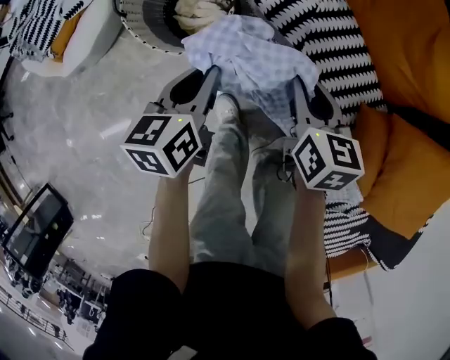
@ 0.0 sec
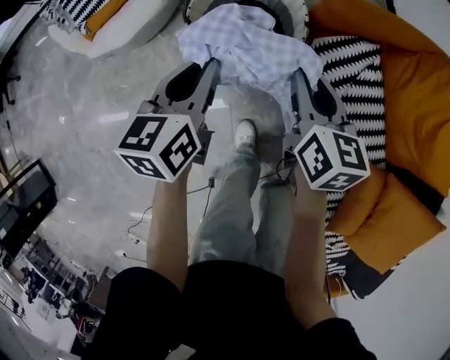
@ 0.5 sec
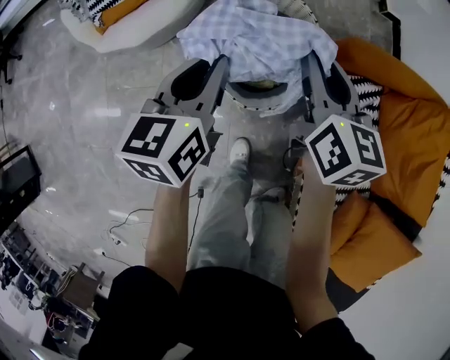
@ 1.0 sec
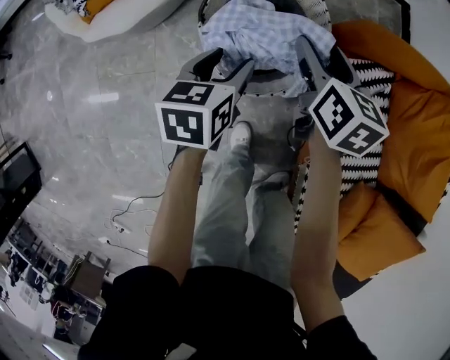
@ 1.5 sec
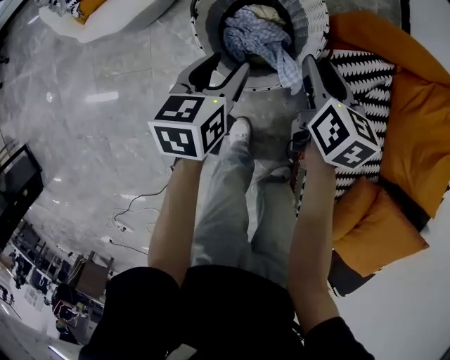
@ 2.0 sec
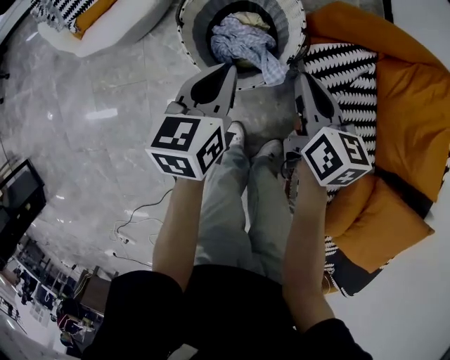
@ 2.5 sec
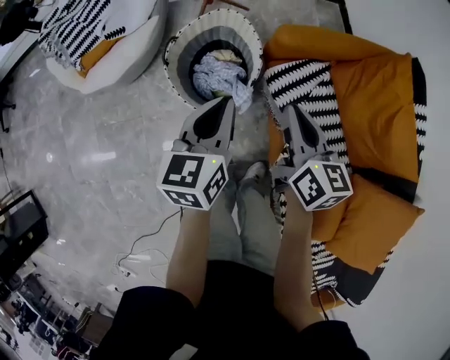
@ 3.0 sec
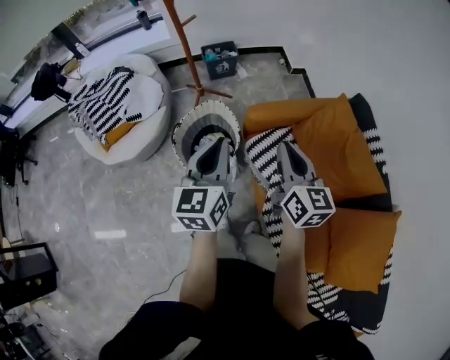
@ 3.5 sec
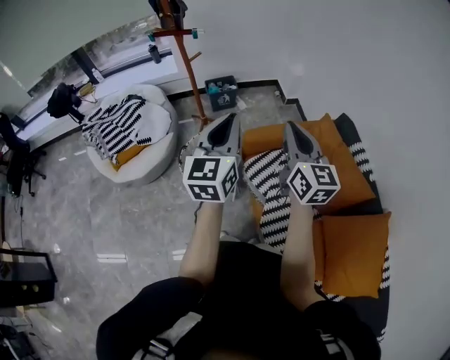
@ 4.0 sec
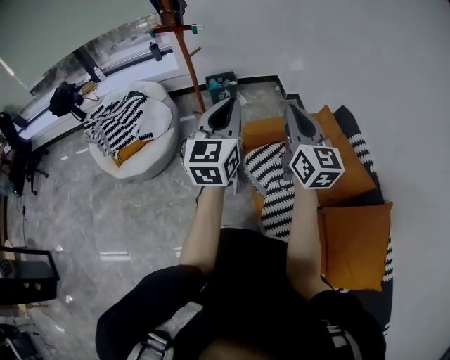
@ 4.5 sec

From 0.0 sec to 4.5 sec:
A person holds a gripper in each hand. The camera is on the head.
From 0.0 sec to 2.0 sec: The left gripper goes some 25 cm to the left and forward, and opens. The right gripper goes some 30 cm forward and to the left, and opens and closes again.
From 2.0 sec to 4.5 sec: The two grippers go about 60 cm upward and to the right. The right gripper tilts its fingers approximately 40 degrees upward, and closes. The left gripper tilts its fingers some 40 degrees upward, and closes up.

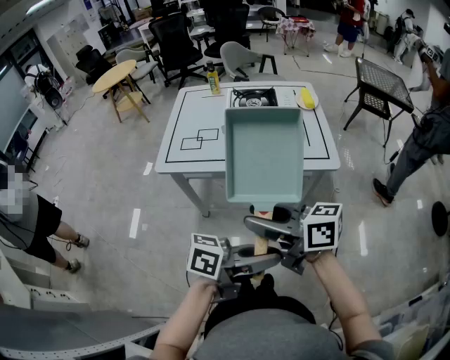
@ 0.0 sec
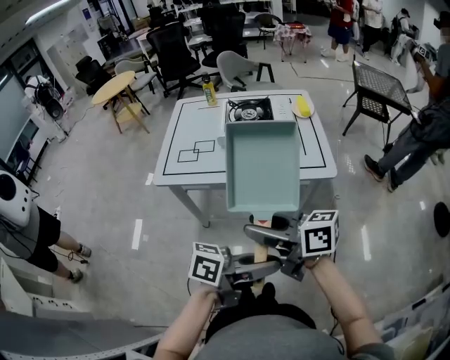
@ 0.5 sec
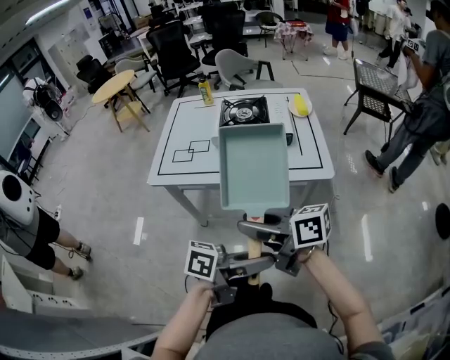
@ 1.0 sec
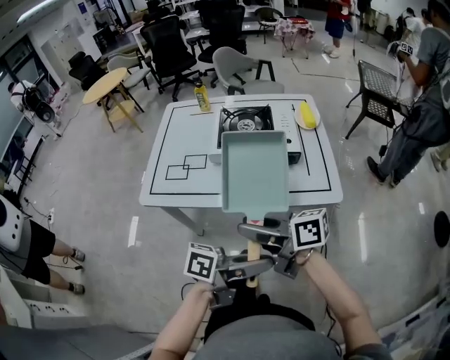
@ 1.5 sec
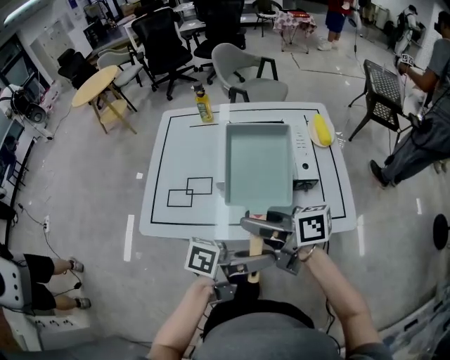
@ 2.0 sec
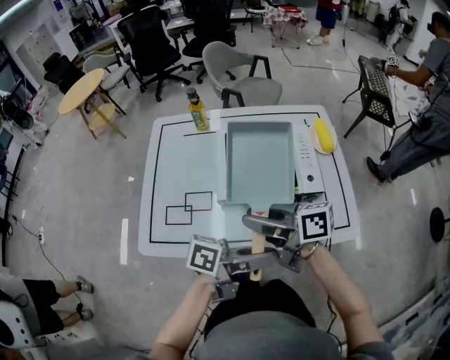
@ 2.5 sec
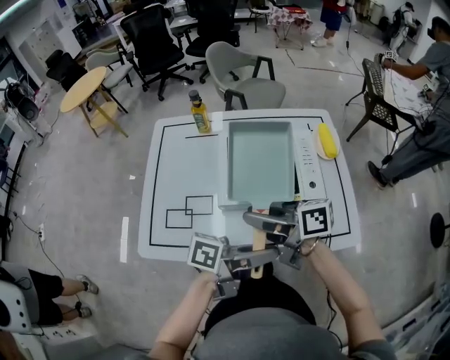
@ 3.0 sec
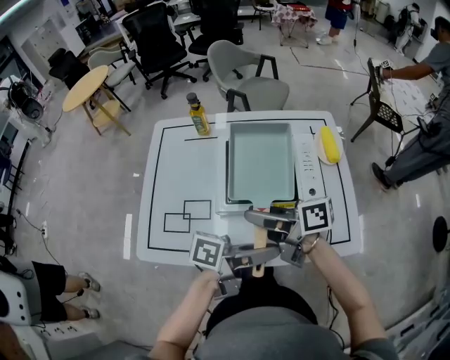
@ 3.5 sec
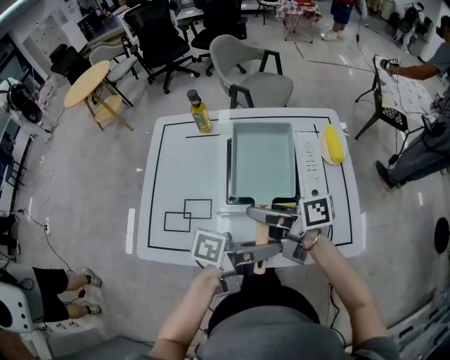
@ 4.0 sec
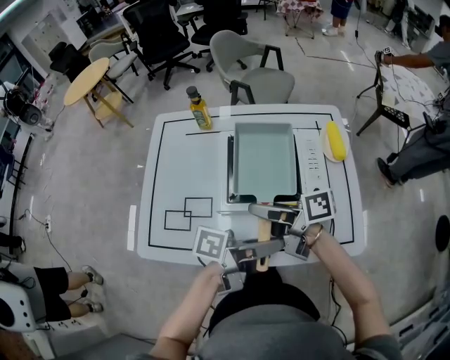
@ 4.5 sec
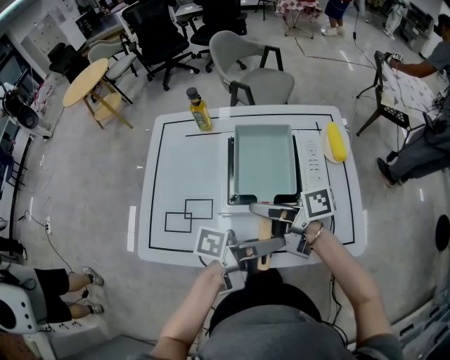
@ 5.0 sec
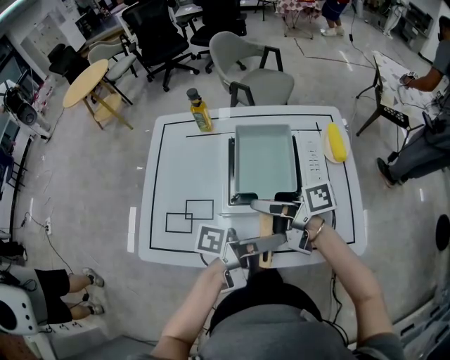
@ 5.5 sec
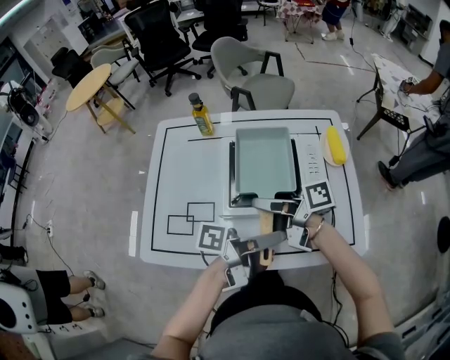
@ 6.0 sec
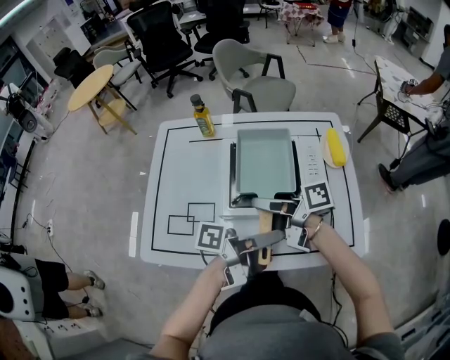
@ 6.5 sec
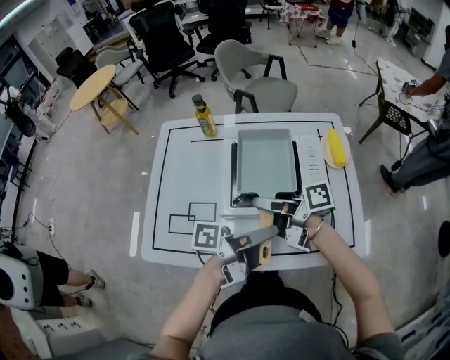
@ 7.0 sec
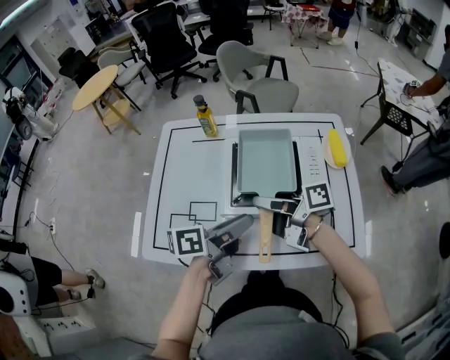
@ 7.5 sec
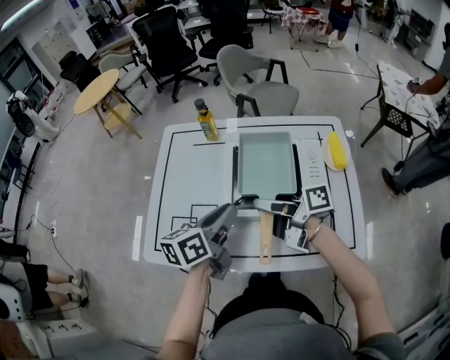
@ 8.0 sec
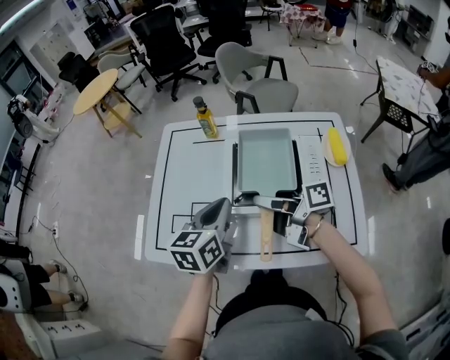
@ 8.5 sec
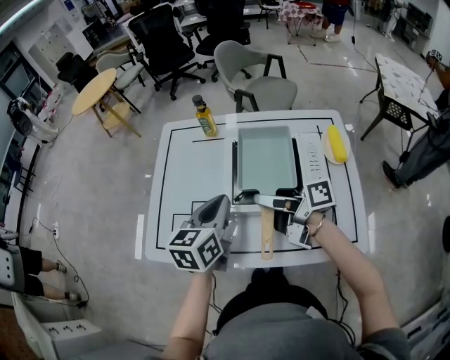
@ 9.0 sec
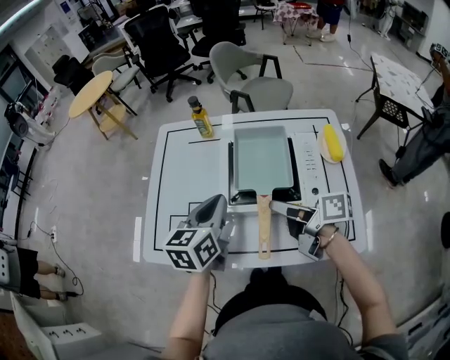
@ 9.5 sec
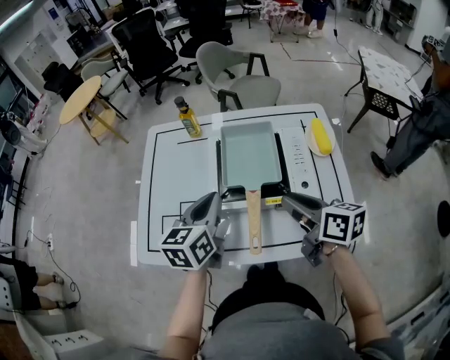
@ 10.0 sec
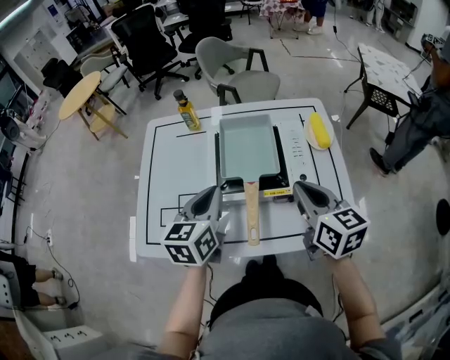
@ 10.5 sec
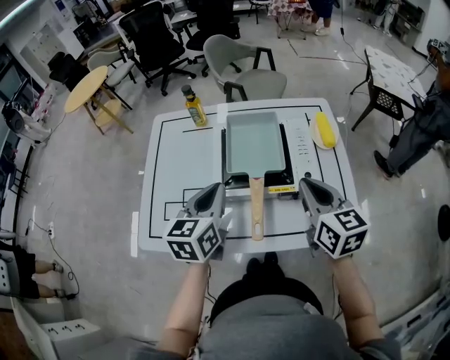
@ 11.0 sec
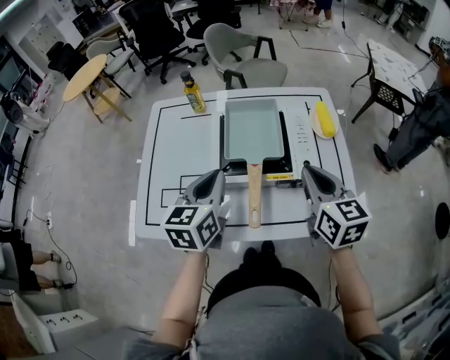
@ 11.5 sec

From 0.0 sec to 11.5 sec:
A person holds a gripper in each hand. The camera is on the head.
From 0.0 sec to 2.0 sec: The right gripper changes place by about 25 cm; the left gripper ends up some 25 cm from where it was.
From 2.0 sec to 4.0 sec: The left gripper shifts by approximately 15 cm. The right gripper shifts by about 15 cm.
From 4.0 sec to 6.0 sec: There are only small adjustments of the grippers.
From 6.0 sec to 7.5 sec: The left gripper moves roughly 10 cm, and swivels some 40 degrees.
From 7.5 sec to 9.5 sec: The left gripper heads forward, covering approximately 5 cm, changes its angle by roughly 50 degrees, and closes up, while the right gripper changes place by approximately 5 cm.
From 9.5 sec to 11.5 sec: The right gripper travels to the right and upward by some 10 cm, changes its angle by approximately 60 degrees, and closes.

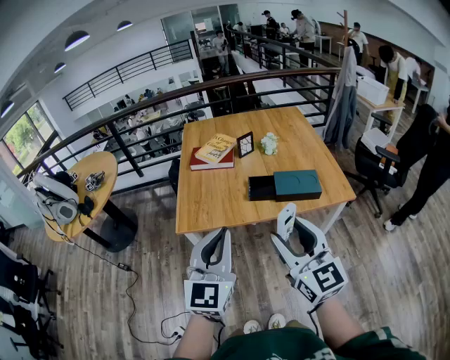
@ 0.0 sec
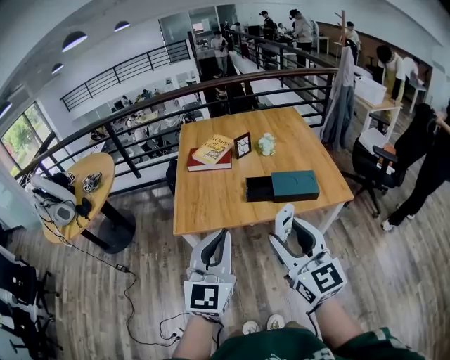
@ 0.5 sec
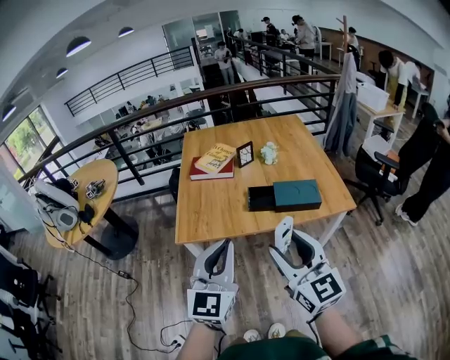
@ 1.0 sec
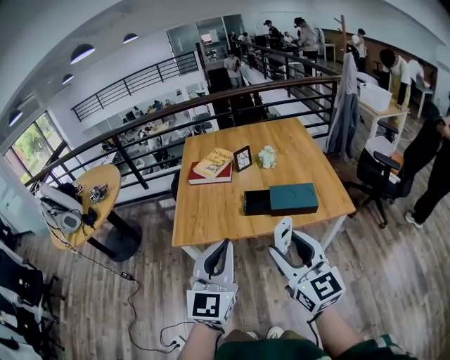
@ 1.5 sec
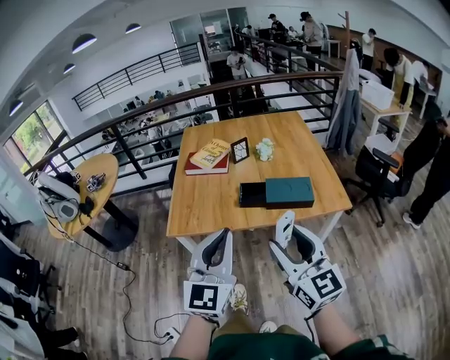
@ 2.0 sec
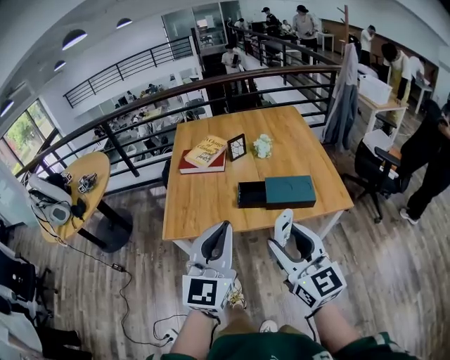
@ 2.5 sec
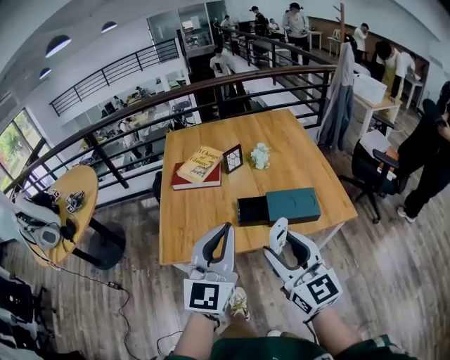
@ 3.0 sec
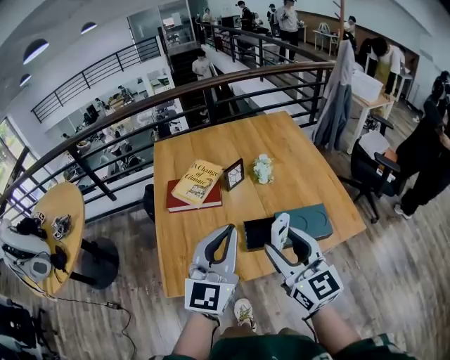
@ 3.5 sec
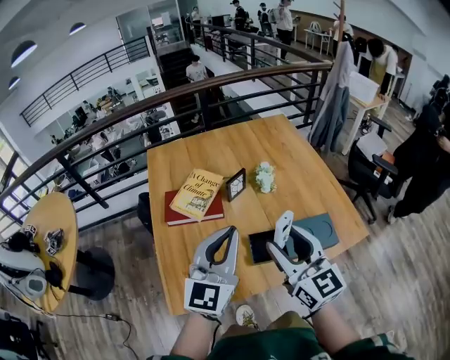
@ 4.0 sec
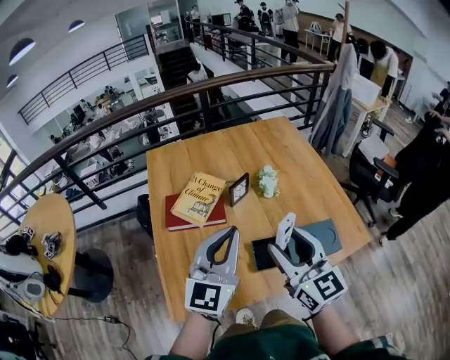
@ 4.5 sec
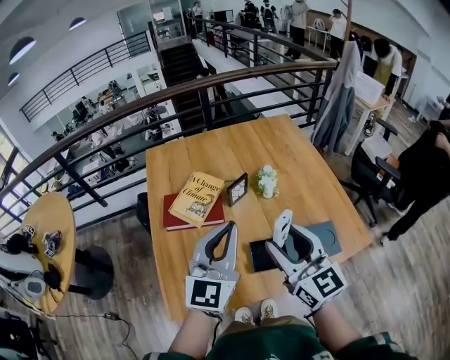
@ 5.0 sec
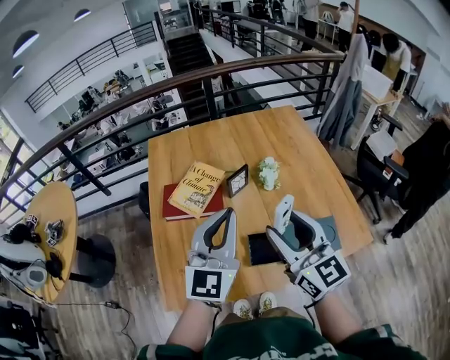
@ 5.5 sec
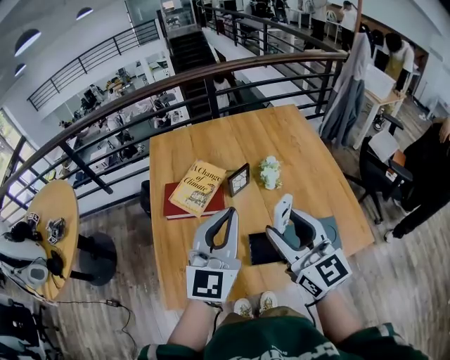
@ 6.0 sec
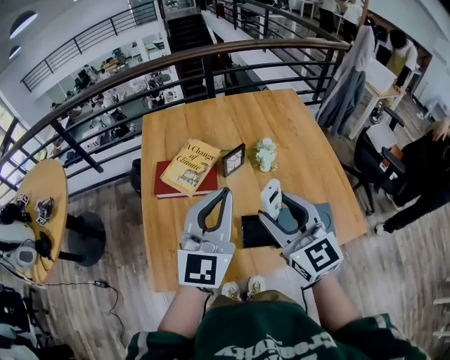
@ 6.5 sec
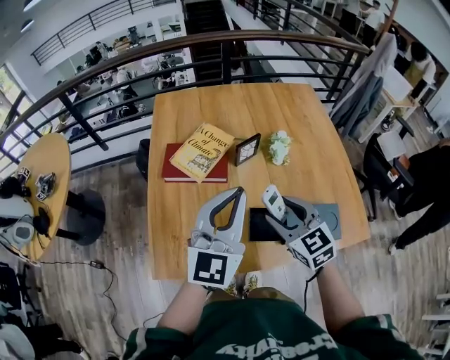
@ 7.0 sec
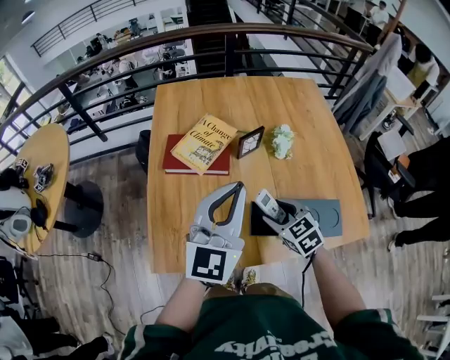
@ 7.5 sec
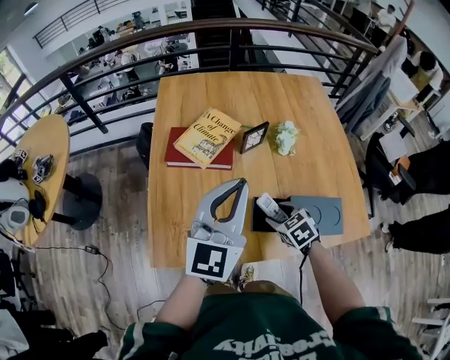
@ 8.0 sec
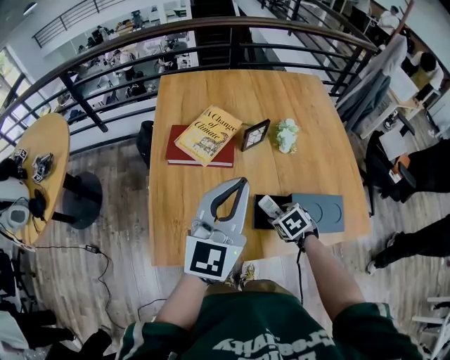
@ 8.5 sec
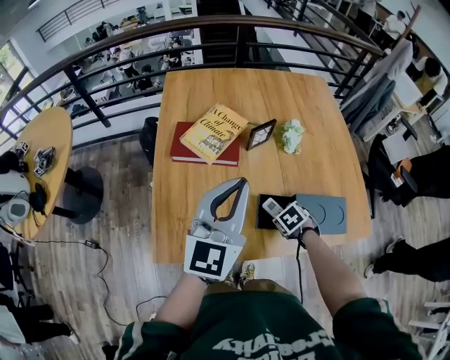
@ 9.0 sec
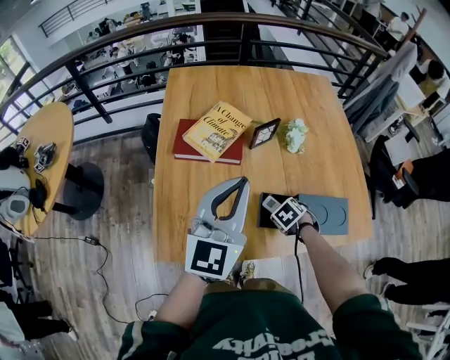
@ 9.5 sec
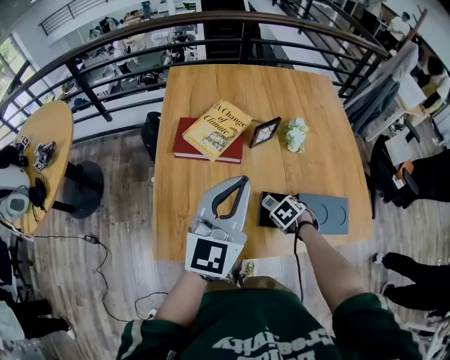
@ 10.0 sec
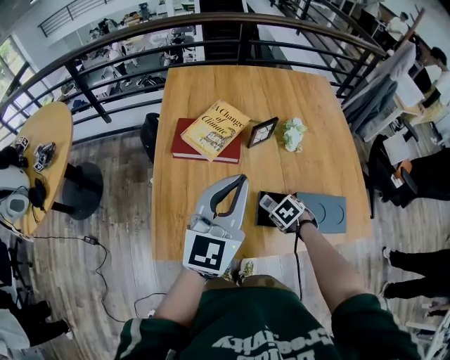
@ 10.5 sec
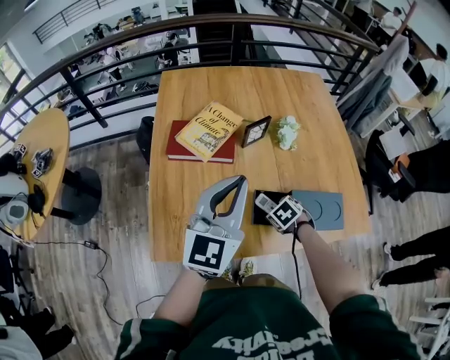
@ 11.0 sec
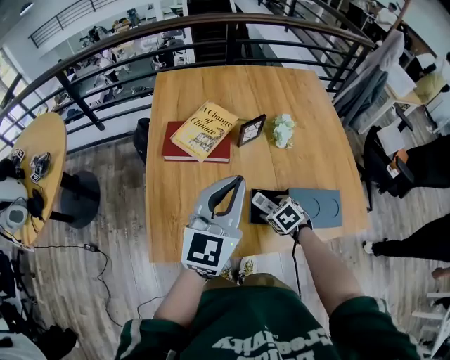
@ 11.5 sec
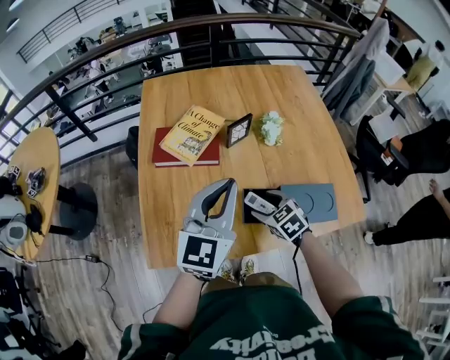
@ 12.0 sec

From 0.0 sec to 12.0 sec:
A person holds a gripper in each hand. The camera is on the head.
From 0.0 sec to 2.0 sec: The two grippers go some 10 cm to the right.
From 2.0 sec to 4.0 sec: The two grippers go approximately 35 cm forward.
From 4.0 sec to 6.0 sec: The two grippers go roughly 5 cm forward.
From 6.0 sec to 8.0 sec: The left gripper shifts by about 5 cm, while the right gripper travels downward by approximately 30 cm, and points its fingers approximately 60 degrees further downward.
From 8.0 sec to 10.0 sec: The right gripper moves downward, roughly 10 cm, and rotates about 30 degrees.
From 10.0 sec to 12.0 sec: The right gripper goes some 10 cm upward, and angles its fingers upward, by approximately 30 degrees.
